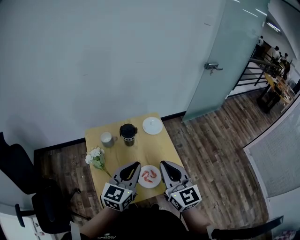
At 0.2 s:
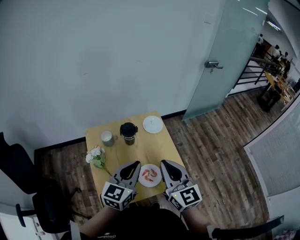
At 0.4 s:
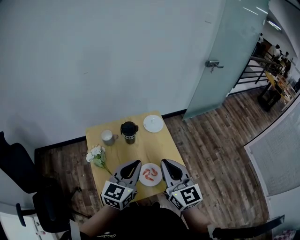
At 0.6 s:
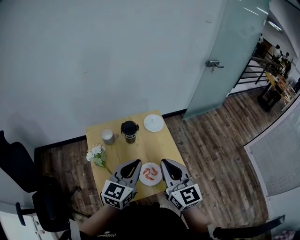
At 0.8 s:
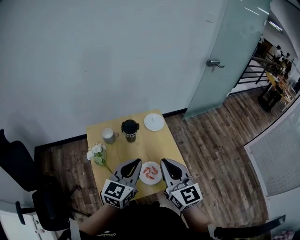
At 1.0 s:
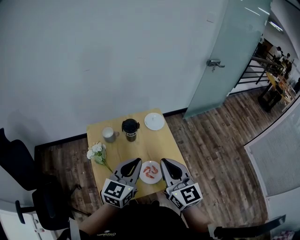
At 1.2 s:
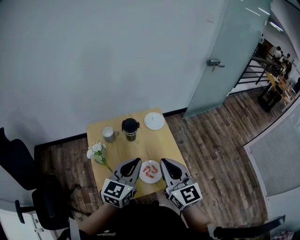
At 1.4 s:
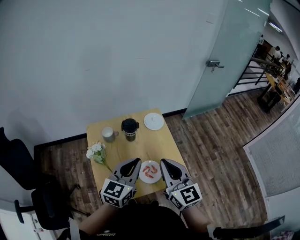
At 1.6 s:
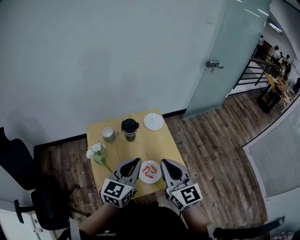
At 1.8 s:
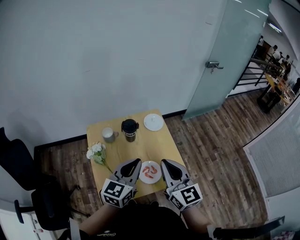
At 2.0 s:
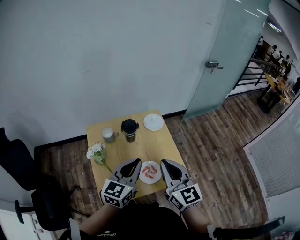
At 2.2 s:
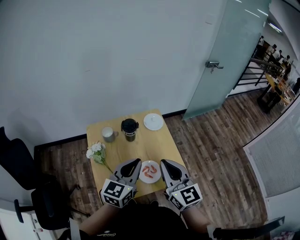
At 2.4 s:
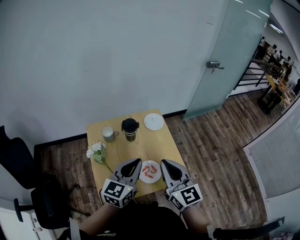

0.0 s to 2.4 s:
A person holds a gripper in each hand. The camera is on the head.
0.0 to 1.2 s: Neither gripper changes place.
1.2 to 2.4 s: Neither gripper changes place.

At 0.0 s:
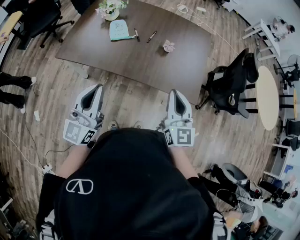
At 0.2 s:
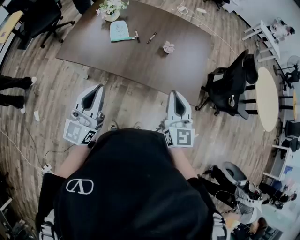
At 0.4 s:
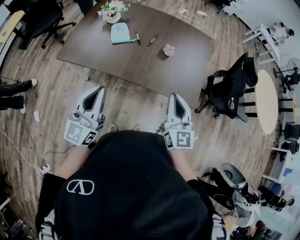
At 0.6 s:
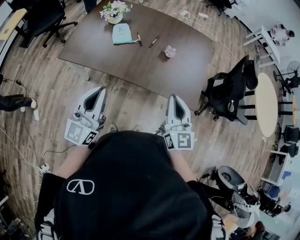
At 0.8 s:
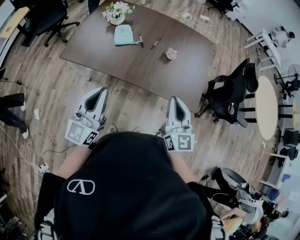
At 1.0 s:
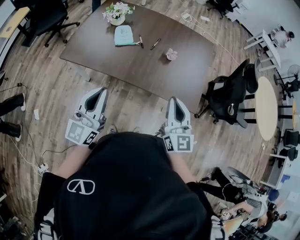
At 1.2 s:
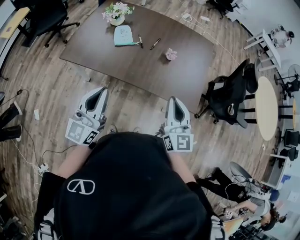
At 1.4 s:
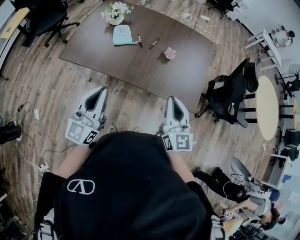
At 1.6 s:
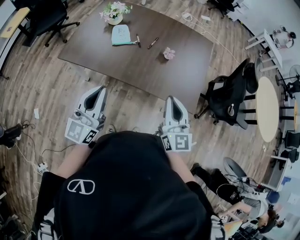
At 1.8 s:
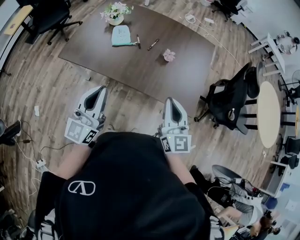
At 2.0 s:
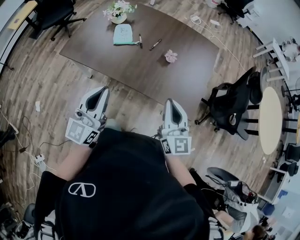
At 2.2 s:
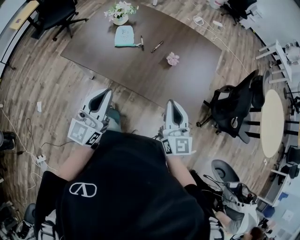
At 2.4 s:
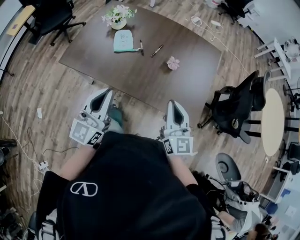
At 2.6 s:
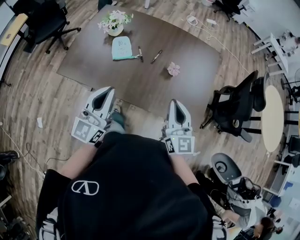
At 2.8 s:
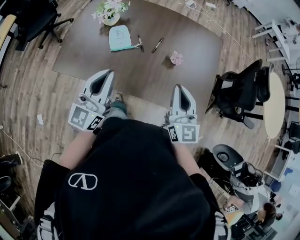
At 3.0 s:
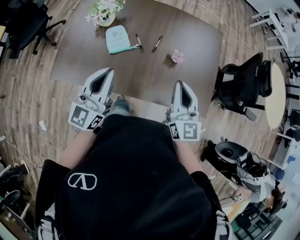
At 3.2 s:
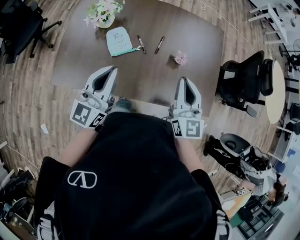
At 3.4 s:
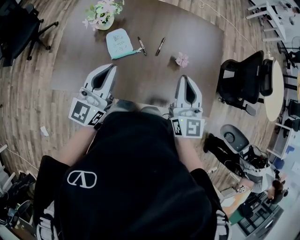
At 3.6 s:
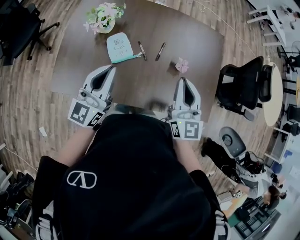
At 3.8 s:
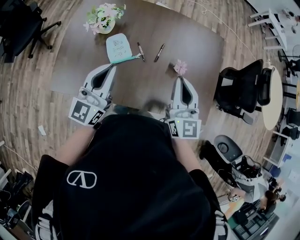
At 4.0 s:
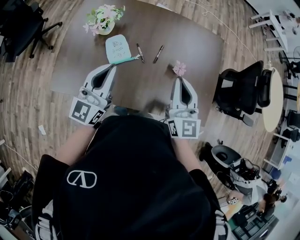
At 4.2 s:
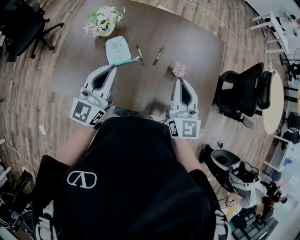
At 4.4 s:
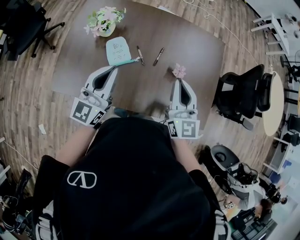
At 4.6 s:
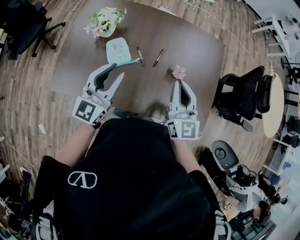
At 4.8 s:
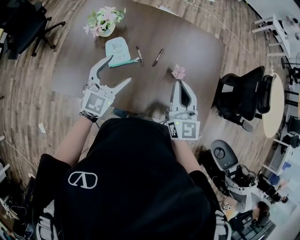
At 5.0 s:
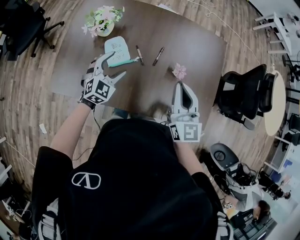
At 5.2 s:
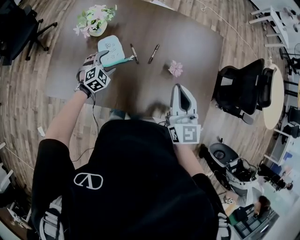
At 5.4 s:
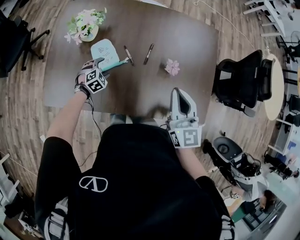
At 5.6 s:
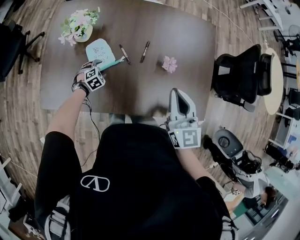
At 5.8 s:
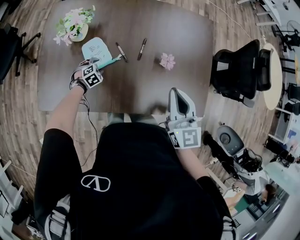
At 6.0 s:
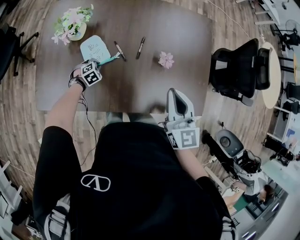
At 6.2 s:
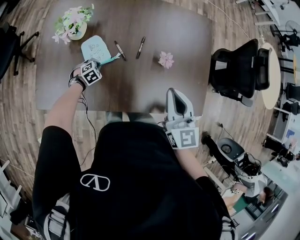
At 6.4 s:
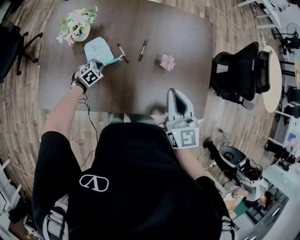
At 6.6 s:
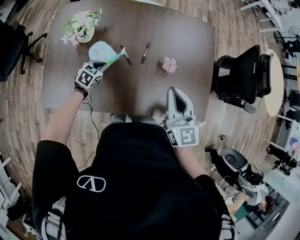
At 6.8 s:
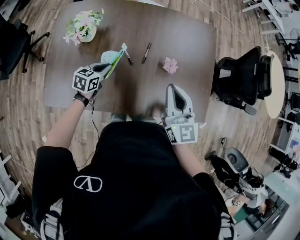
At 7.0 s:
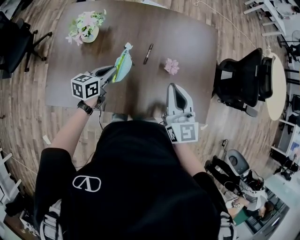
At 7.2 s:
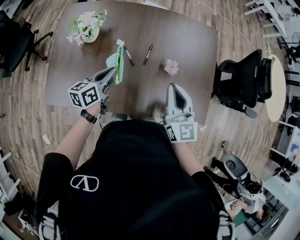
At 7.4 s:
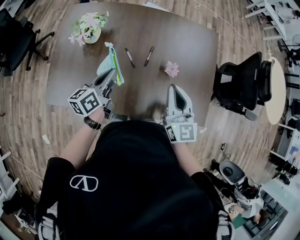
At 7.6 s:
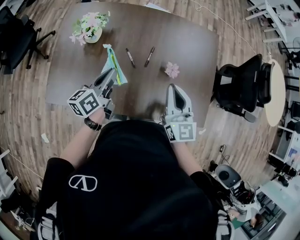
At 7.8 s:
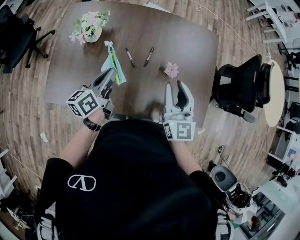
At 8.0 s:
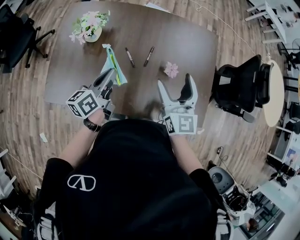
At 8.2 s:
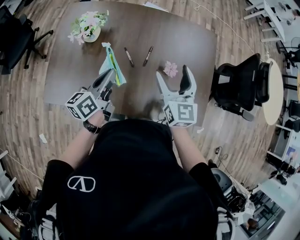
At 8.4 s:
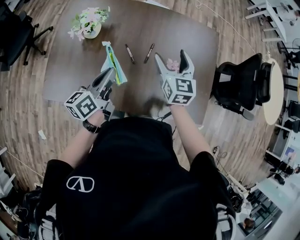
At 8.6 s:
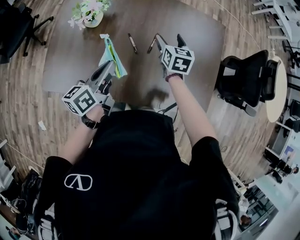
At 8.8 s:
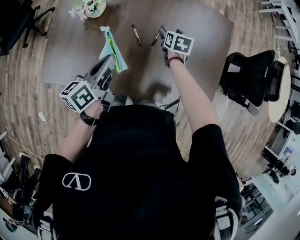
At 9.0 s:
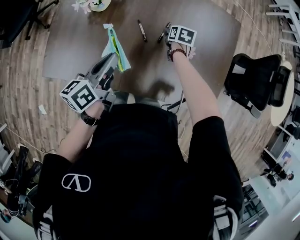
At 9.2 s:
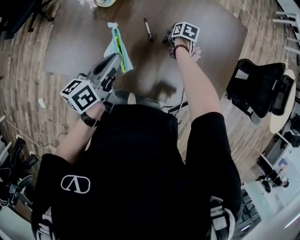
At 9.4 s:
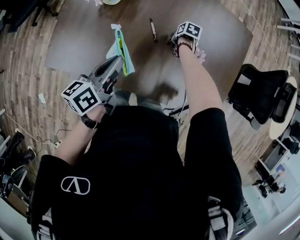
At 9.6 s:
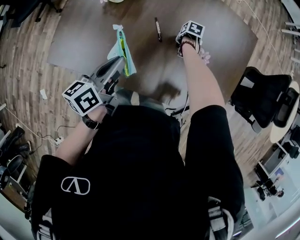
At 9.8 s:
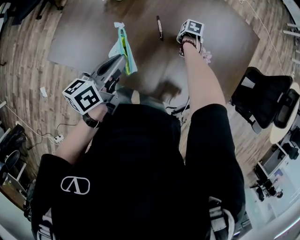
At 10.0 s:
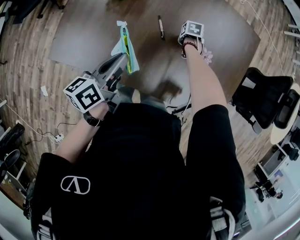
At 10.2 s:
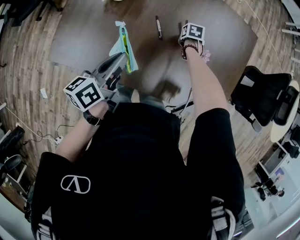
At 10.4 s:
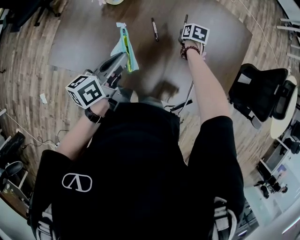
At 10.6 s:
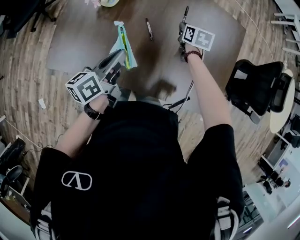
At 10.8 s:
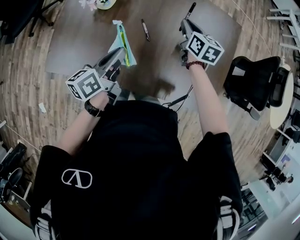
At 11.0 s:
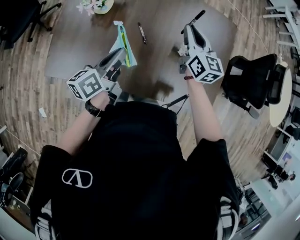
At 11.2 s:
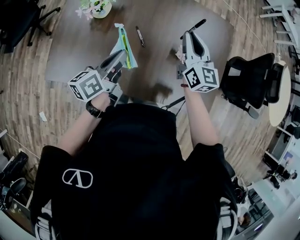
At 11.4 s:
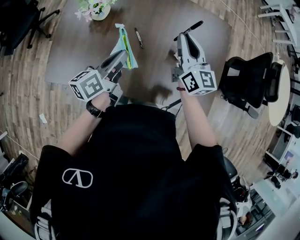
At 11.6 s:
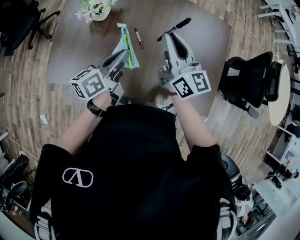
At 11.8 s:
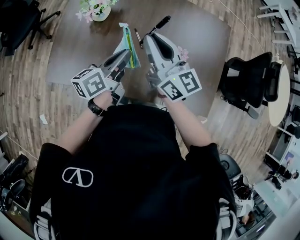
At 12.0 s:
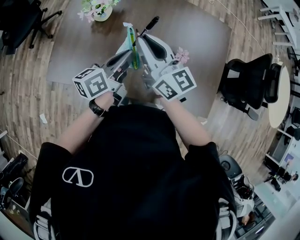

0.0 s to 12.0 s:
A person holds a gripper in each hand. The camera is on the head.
0.0 to 1.6 s: The grippers move only a little.
1.6 to 3.0 s: The grippers both shift forward by some 25 cm.
3.0 to 4.4 s: The two grippers go approximately 10 cm forward.
4.4 to 6.0 s: The left gripper goes approximately 40 cm downward, angles its fingers downward, by approximately 80 degrees, and opens, then closes once more, while the right gripper heads downward, covering about 5 cm.
6.0 to 7.6 s: The left gripper heads upward, covering approximately 35 cm, and angles its fingers upward, by roughly 60 degrees.
7.6 to 9.0 s: The right gripper is displaced downward and forward by approximately 35 cm, points its fingers about 50 degrees further downward, and opens its fingers.
9.0 to 10.4 s: The right gripper travels downward and back again, some 10 cm each way, and closes up.
10.4 to 12.0 s: The left gripper travels to the right and upward by roughly 10 cm; the right gripper shifts approximately 40 cm upward and backward, and angles its fingers upward, by roughly 70 degrees.

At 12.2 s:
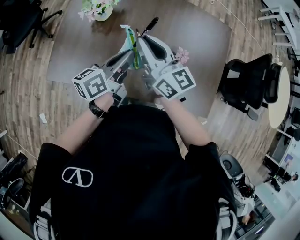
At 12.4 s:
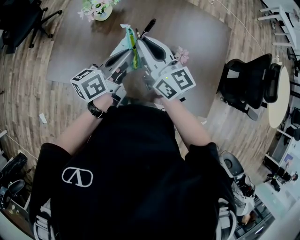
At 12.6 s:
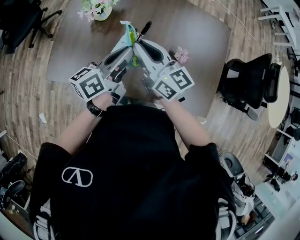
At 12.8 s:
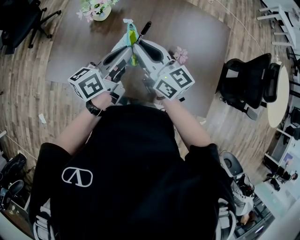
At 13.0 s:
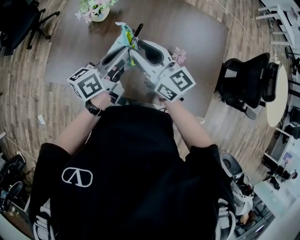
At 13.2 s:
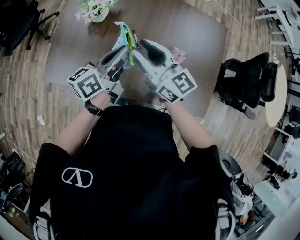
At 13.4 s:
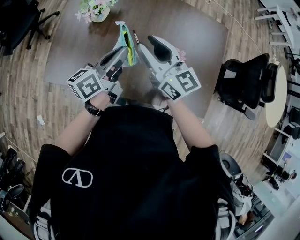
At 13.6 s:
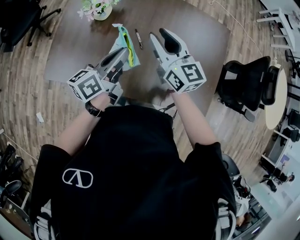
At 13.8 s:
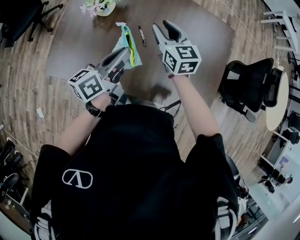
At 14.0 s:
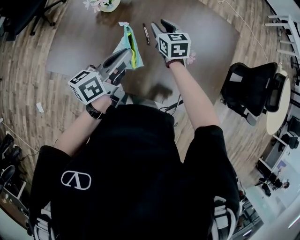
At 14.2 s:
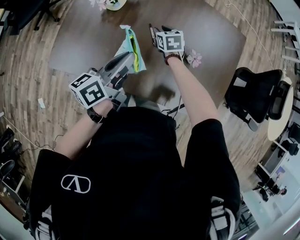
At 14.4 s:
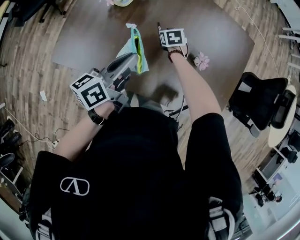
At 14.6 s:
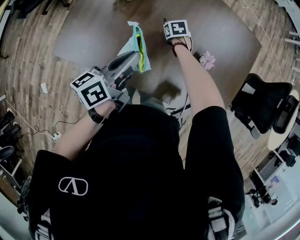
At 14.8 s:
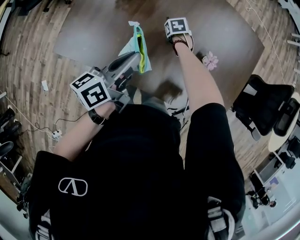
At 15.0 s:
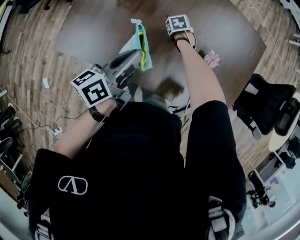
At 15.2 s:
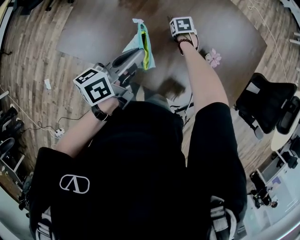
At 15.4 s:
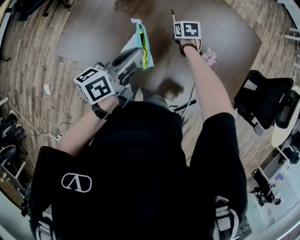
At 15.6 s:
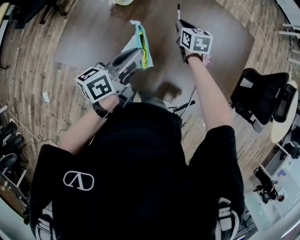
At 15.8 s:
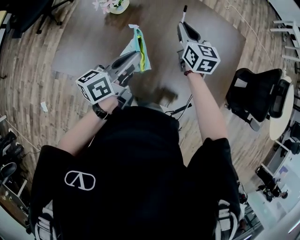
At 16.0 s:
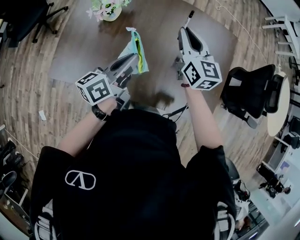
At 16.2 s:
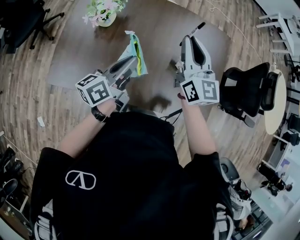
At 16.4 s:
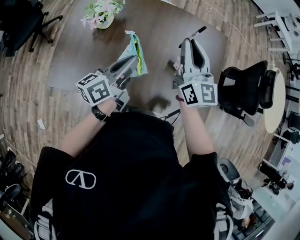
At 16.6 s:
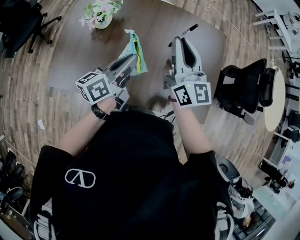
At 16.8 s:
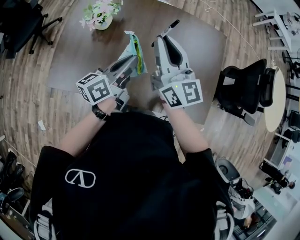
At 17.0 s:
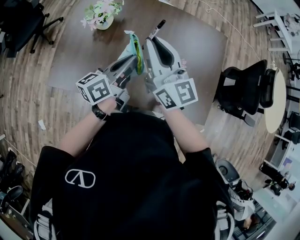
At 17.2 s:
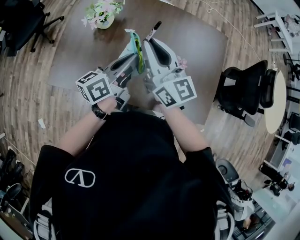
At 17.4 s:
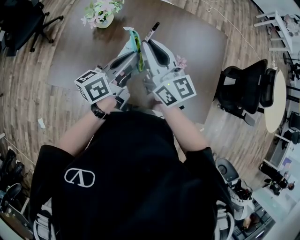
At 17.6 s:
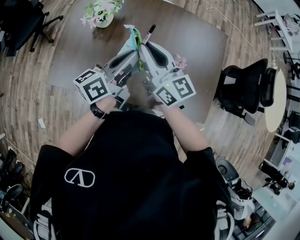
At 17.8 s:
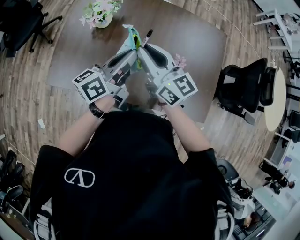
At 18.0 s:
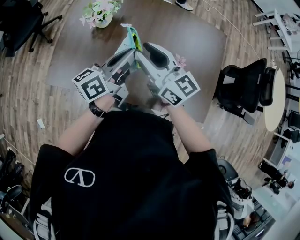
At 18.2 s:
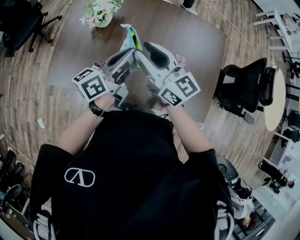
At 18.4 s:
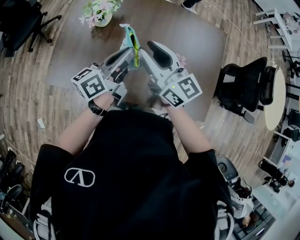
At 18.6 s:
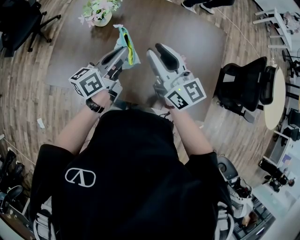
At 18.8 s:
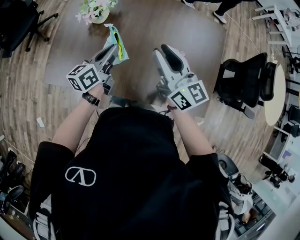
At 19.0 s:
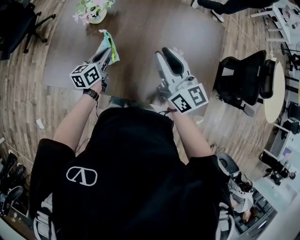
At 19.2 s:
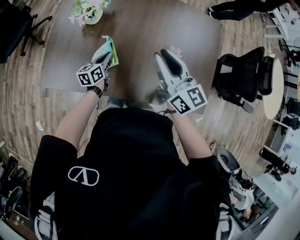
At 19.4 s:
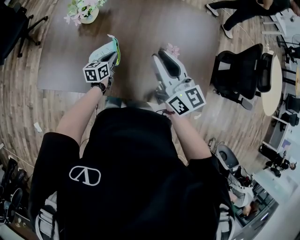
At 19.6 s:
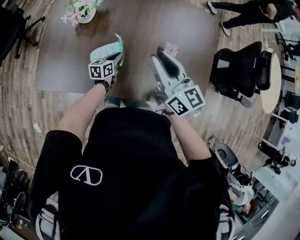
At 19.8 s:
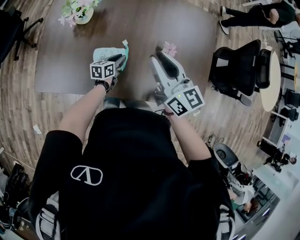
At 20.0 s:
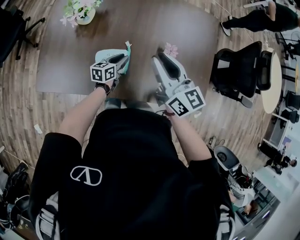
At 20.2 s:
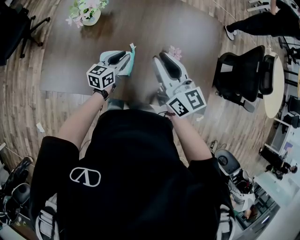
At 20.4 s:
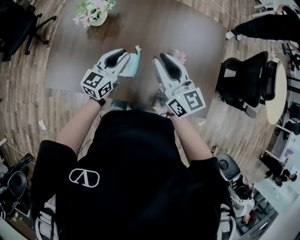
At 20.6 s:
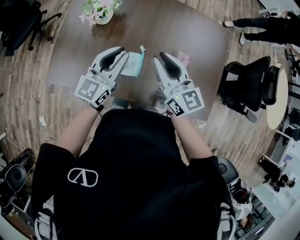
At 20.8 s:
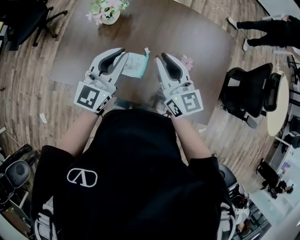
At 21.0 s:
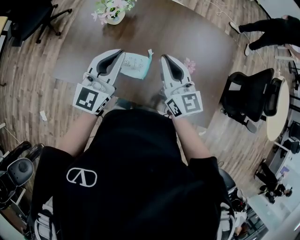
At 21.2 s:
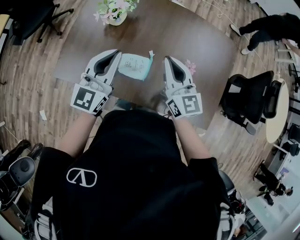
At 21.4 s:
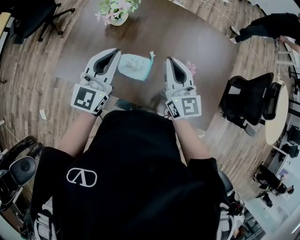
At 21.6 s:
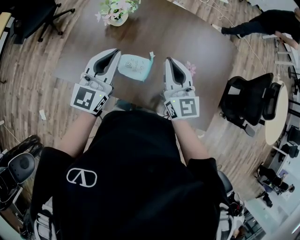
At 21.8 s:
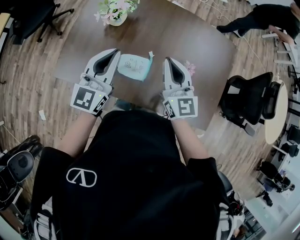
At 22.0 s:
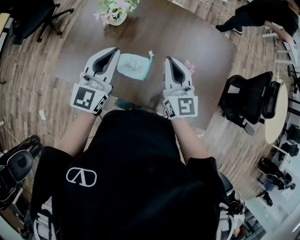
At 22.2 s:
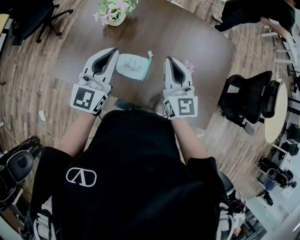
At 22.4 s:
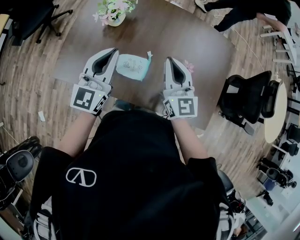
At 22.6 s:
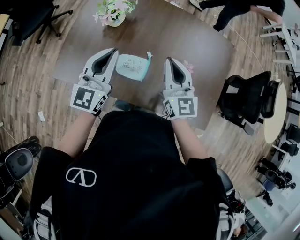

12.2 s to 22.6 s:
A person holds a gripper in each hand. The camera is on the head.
12.2 to 13.6 s: The grippers move only a little.
13.6 to 15.2 s: The right gripper shifts roughly 40 cm downward, and tilts its fingers roughly 70 degrees downward; the left gripper moves downward, roughly 5 cm.
15.2 to 16.6 s: The right gripper is displaced upward by roughly 50 cm, and tilts its fingers about 80 degrees upward, while the left gripper shifts about 10 cm upward.
16.6 to 18.2 s: The right gripper heads to the left, covering about 10 cm, and turns by roughly 30 degrees.
18.2 to 19.6 s: The left gripper is displaced downward by roughly 30 cm, and tilts its fingers roughly 30 degrees downward; the right gripper goes approximately 10 cm to the right.
19.6 to 21.2 s: The right gripper shifts about 5 cm to the left. Meanwhile the left gripper travels upward by approximately 35 cm, and tilts its fingers approximately 30 degrees upward.
21.2 to 22.6 s: There are only small adjustments of the grippers.
